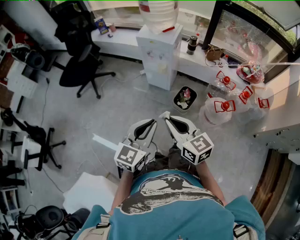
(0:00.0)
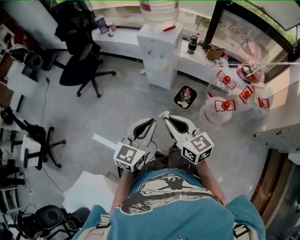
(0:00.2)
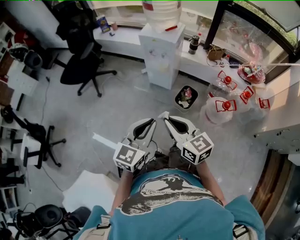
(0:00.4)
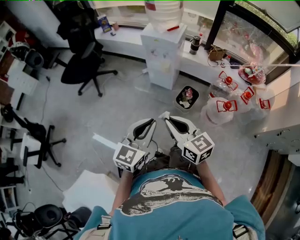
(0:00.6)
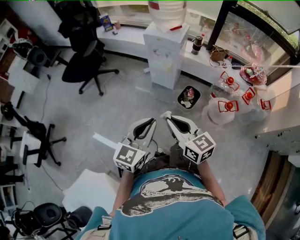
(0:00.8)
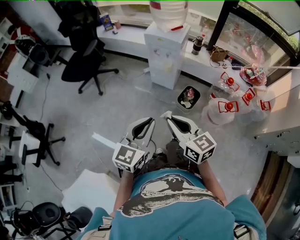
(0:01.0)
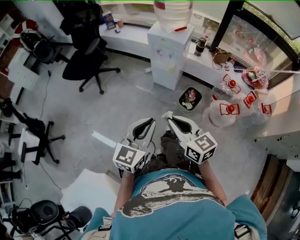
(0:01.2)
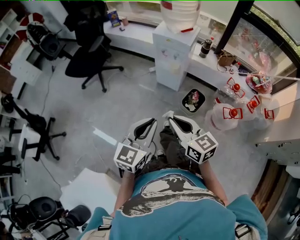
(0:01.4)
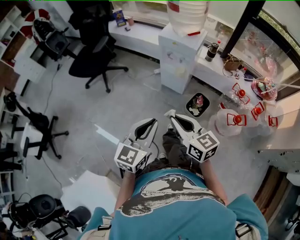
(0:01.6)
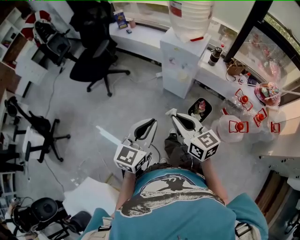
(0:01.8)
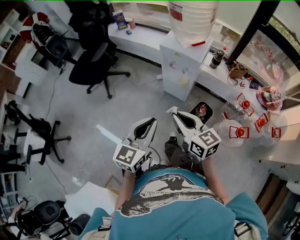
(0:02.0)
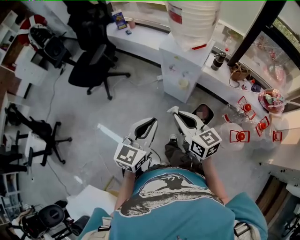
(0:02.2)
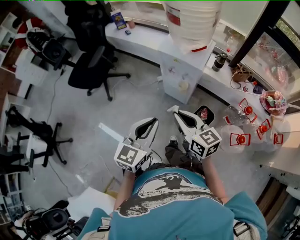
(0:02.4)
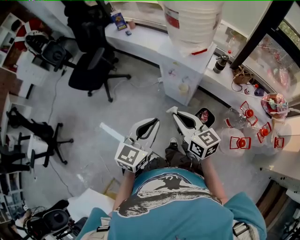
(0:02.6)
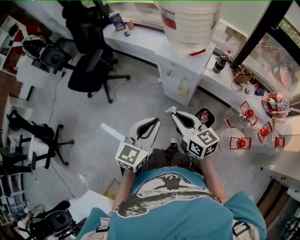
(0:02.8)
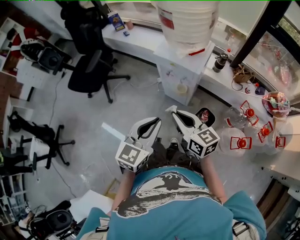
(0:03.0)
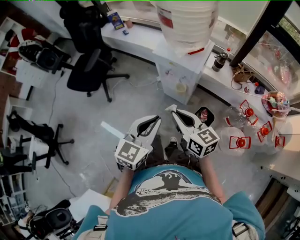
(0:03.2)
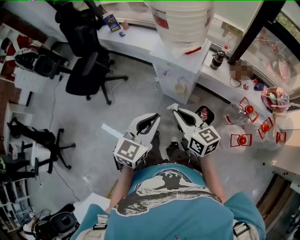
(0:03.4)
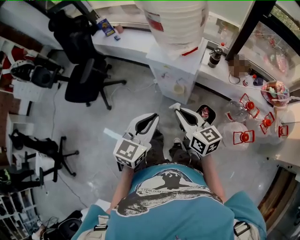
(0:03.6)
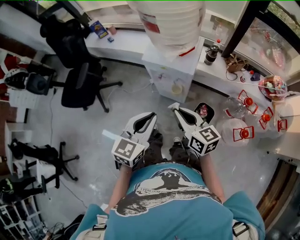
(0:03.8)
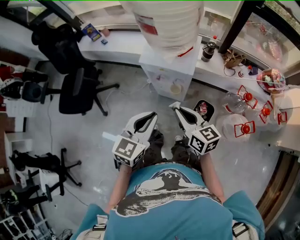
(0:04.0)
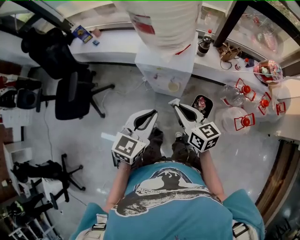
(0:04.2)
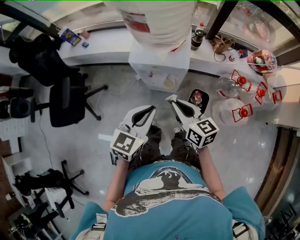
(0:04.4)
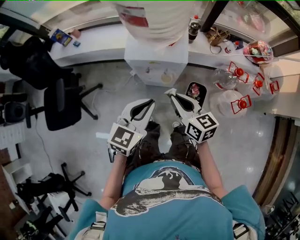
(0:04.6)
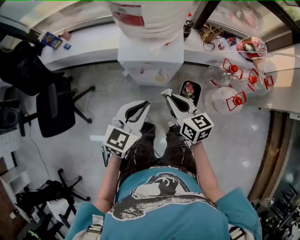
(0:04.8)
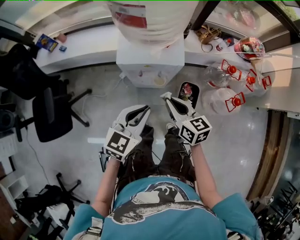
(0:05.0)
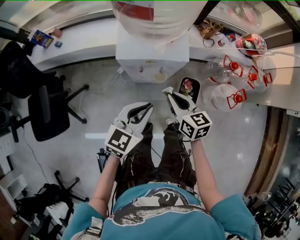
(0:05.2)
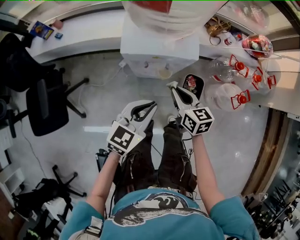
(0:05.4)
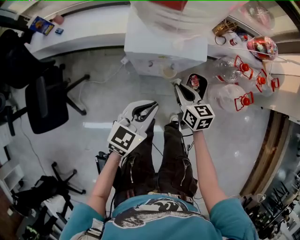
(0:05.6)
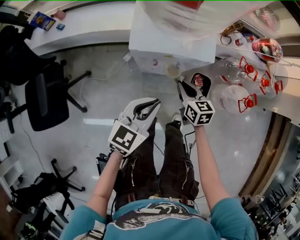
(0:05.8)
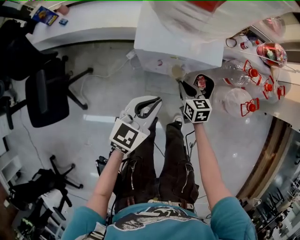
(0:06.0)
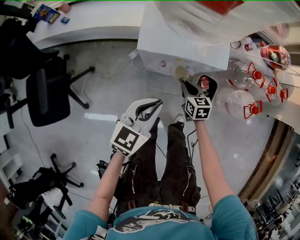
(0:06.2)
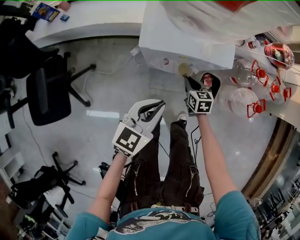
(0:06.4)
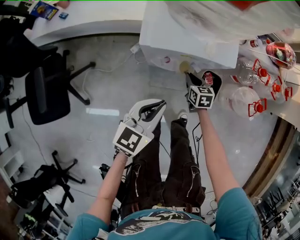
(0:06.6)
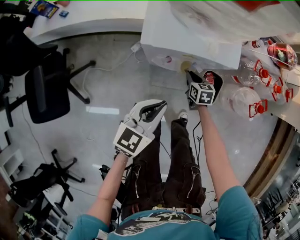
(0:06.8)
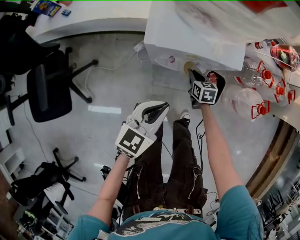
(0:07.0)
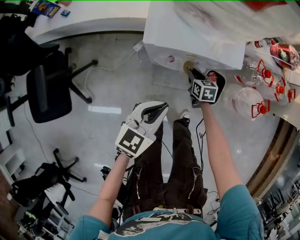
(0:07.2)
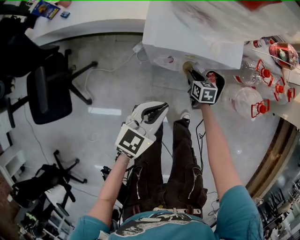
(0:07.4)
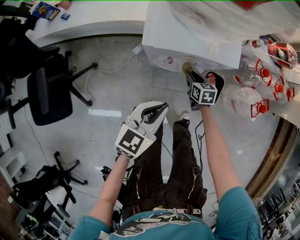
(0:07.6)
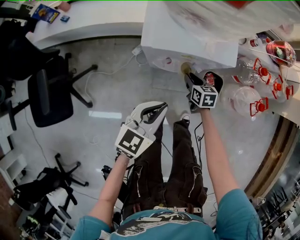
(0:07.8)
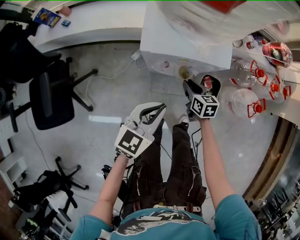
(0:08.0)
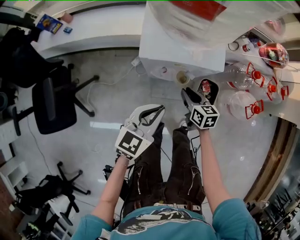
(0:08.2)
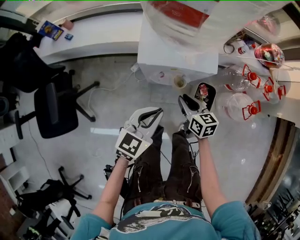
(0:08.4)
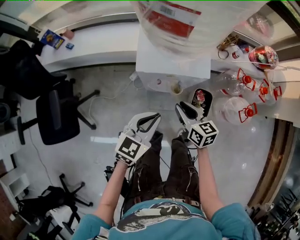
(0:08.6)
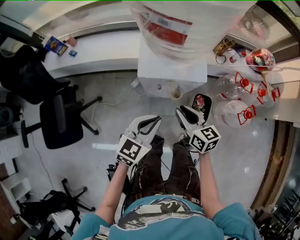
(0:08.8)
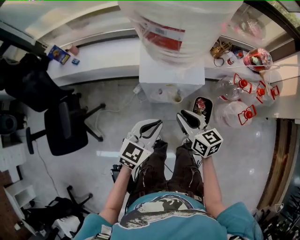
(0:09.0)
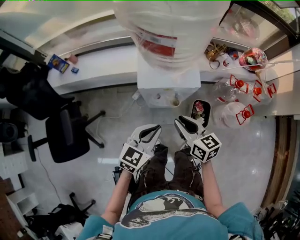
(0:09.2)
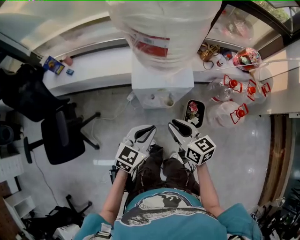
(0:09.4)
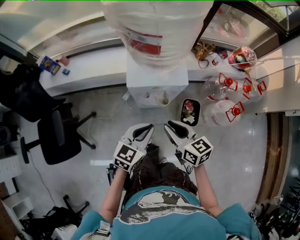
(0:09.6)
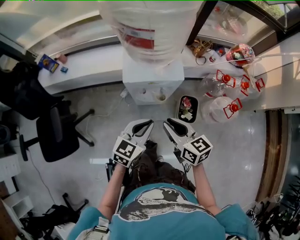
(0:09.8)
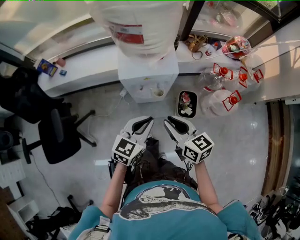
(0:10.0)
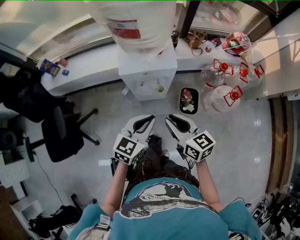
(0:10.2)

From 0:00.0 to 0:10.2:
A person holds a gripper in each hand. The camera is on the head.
From 0:00.0 to 0:01.4: The grippers both shift to the left by some 5 cm.
From 0:01.4 to 0:03.0: Both grippers move forward, some 25 cm.
From 0:03.0 to 0:04.4: The grippers both shift forward by about 10 cm. The right gripper rotates some 30 degrees, while the left gripper swivels about 20 degrees.
From 0:04.4 to 0:05.8: The left gripper travels downward by approximately 15 cm; the right gripper moves downward and forward, some 25 cm, and swivels about 20 degrees.
From 0:05.8 to 0:07.2: The right gripper moves downward and forward, some 15 cm; the left gripper is displaced downward by about 5 cm.
From 0:07.2 to 0:08.8: The right gripper heads upward, covering about 25 cm, and swivels some 30 degrees; the left gripper goes approximately 10 cm upward.
From 0:08.8 to 0:10.2: The right gripper shifts roughly 15 cm backward and upward. Meanwhile the left gripper goes about 10 cm backward and upward.

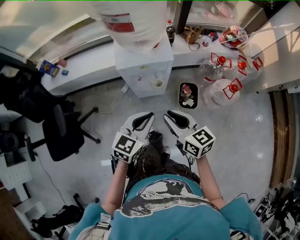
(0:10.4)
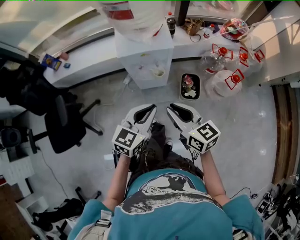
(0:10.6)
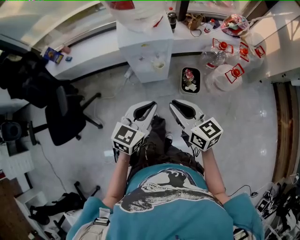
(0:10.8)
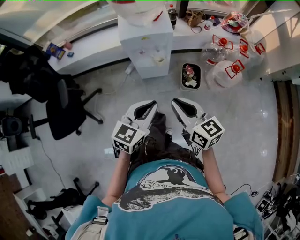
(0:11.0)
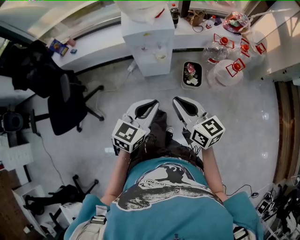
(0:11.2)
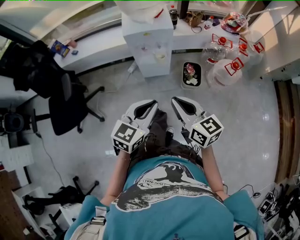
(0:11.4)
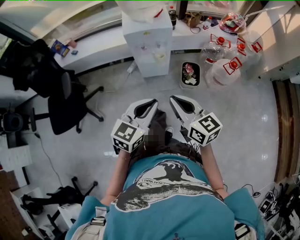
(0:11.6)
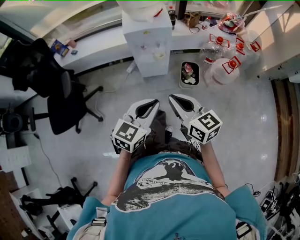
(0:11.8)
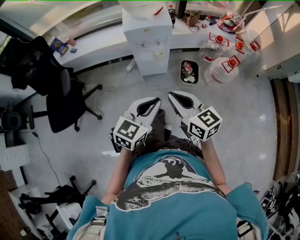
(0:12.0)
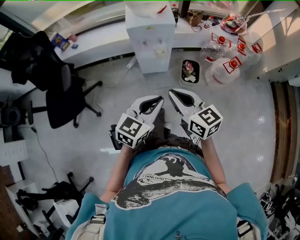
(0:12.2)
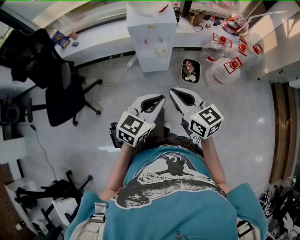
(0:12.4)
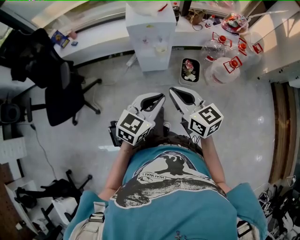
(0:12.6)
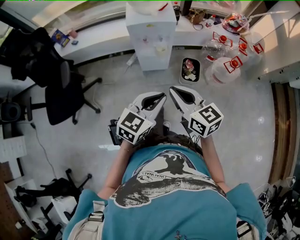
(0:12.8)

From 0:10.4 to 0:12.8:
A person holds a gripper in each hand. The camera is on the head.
From 0:10.4 to 0:11.6: Both grippers move backward, roughly 20 cm.
From 0:11.6 to 0:12.8: The grippers make only small movements.

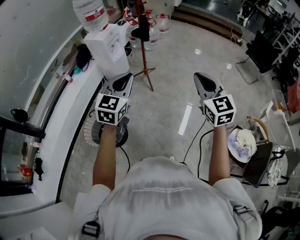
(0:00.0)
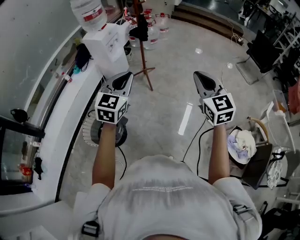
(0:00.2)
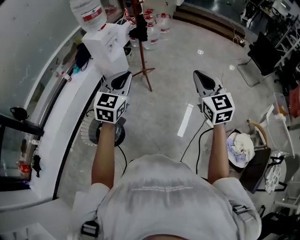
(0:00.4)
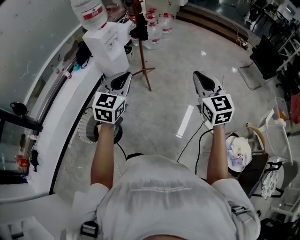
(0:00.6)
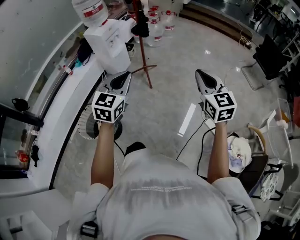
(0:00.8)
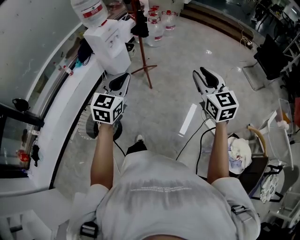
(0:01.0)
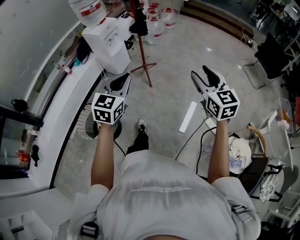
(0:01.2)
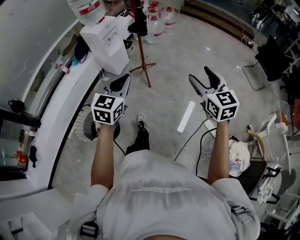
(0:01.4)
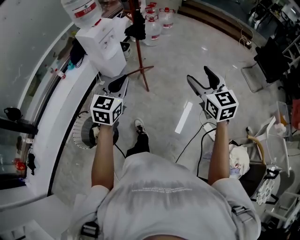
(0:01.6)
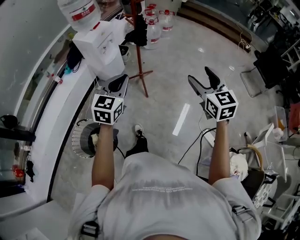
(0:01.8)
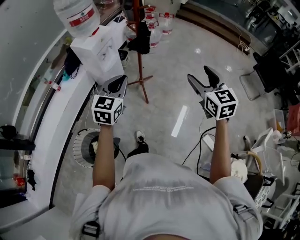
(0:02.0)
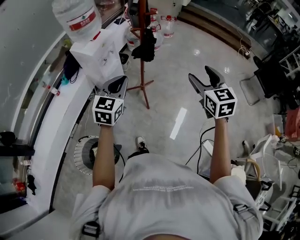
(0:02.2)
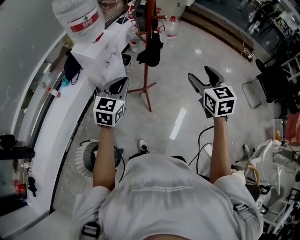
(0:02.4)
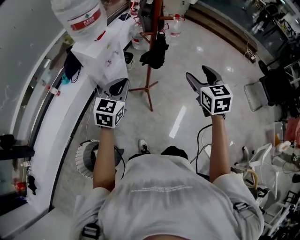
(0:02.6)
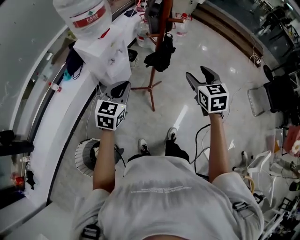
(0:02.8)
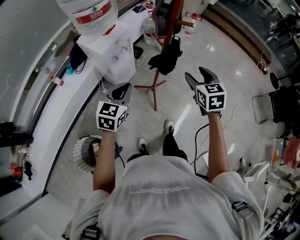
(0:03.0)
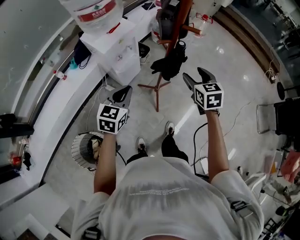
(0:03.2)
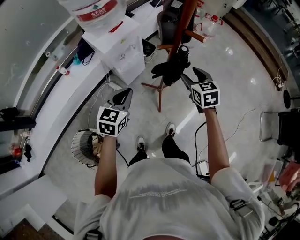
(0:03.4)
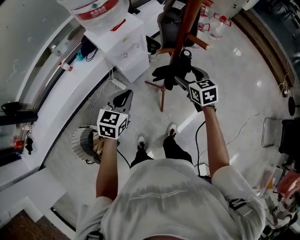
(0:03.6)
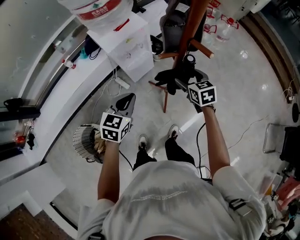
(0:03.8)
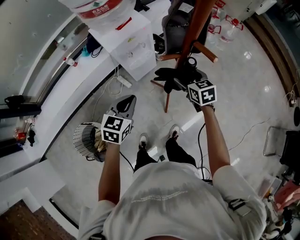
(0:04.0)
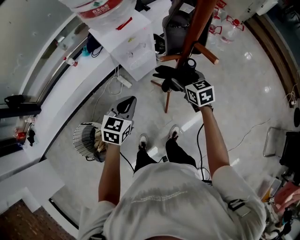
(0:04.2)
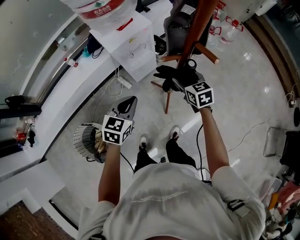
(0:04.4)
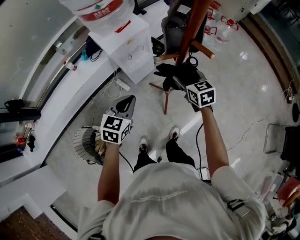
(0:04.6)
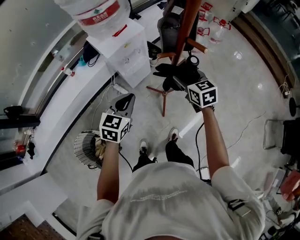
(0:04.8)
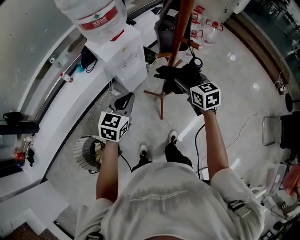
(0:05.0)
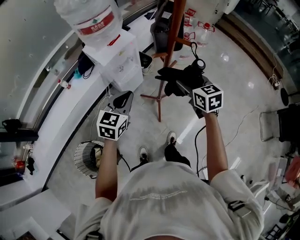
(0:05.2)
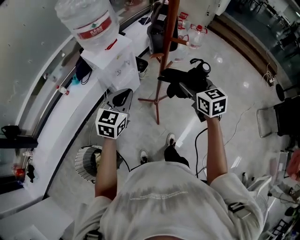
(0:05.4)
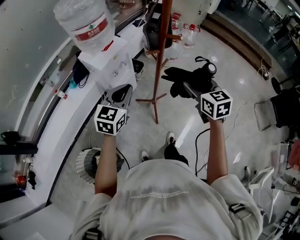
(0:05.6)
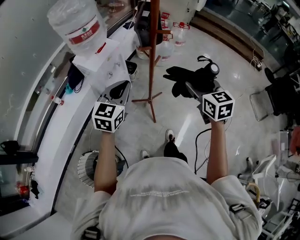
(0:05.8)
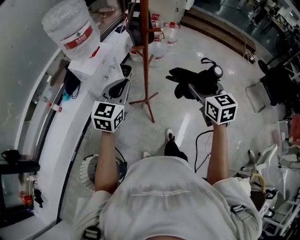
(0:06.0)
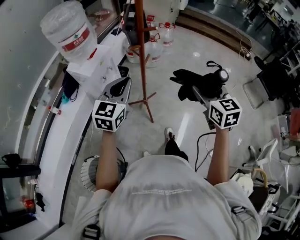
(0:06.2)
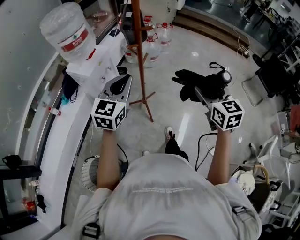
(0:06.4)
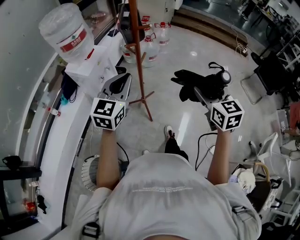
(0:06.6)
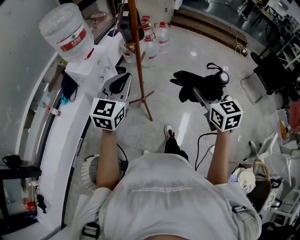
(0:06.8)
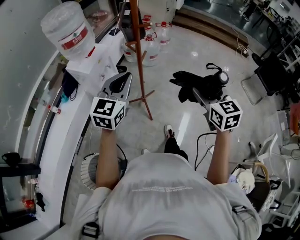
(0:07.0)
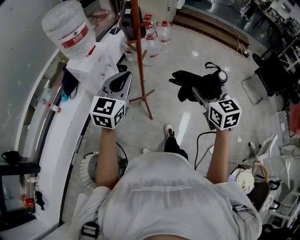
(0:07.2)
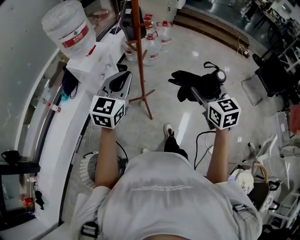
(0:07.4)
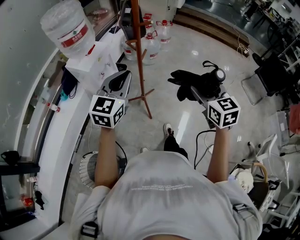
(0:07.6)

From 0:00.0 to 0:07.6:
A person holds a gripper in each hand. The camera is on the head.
From 0:00.0 to 0:01.6: The left gripper goes about 15 cm forward, downward and to the right. The right gripper shifts roughly 20 cm forward and to the right, and opens up.
From 0:01.6 to 0:03.0: Both grippers move forward and to the left, about 40 cm.
From 0:03.0 to 0:04.6: The right gripper ends up about 20 cm from where it was, and changes its angle by about 30 degrees. Meanwhile the left gripper is displaced downward by about 5 cm.
From 0:04.6 to 0:06.0: The left gripper goes some 15 cm upward, and rotates roughly 30 degrees. The right gripper moves about 35 cm, and changes its angle by some 30 degrees.
From 0:06.0 to 0:07.6: The right gripper travels backward by roughly 10 cm. Meanwhile the left gripper shifts by approximately 5 cm.

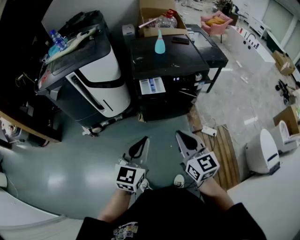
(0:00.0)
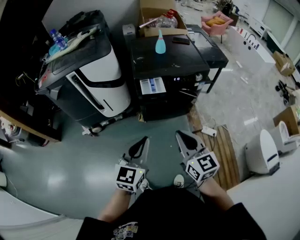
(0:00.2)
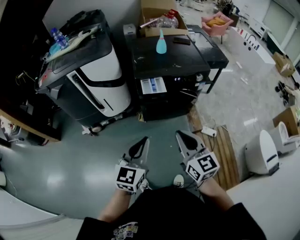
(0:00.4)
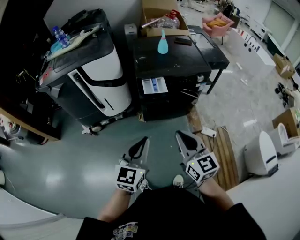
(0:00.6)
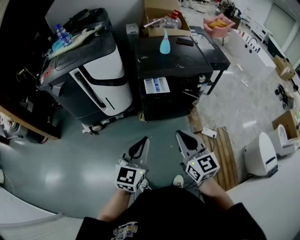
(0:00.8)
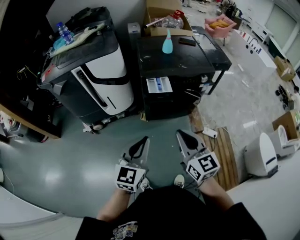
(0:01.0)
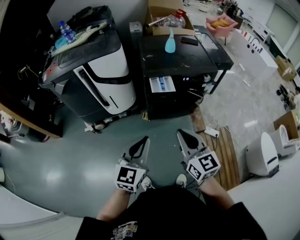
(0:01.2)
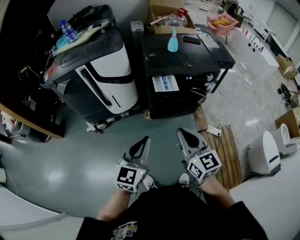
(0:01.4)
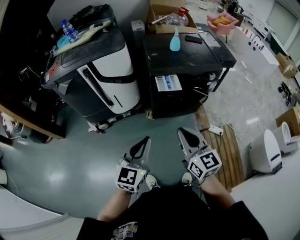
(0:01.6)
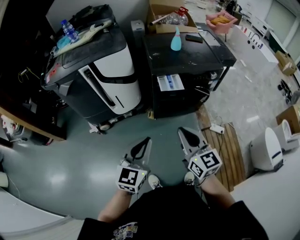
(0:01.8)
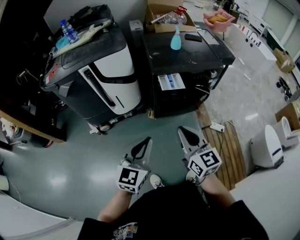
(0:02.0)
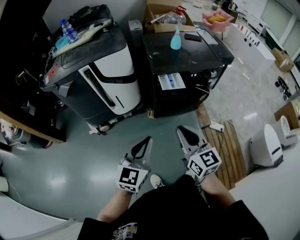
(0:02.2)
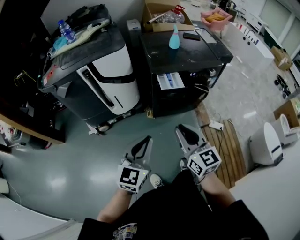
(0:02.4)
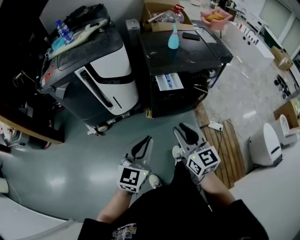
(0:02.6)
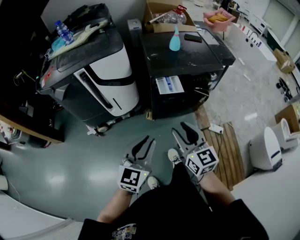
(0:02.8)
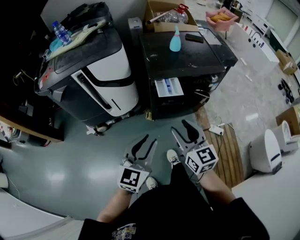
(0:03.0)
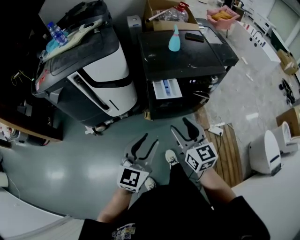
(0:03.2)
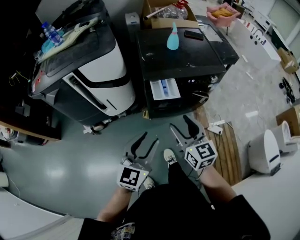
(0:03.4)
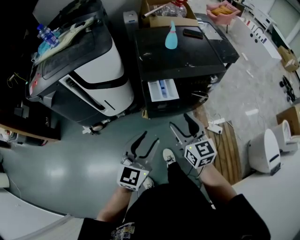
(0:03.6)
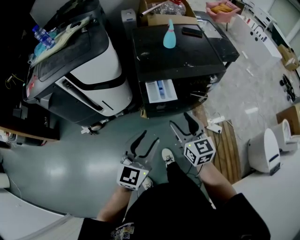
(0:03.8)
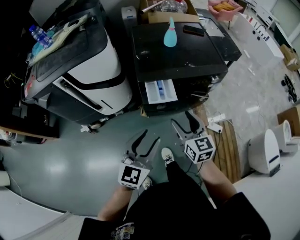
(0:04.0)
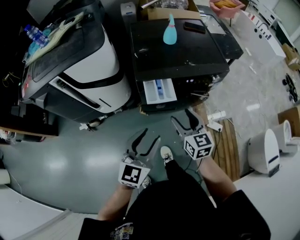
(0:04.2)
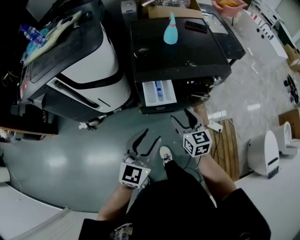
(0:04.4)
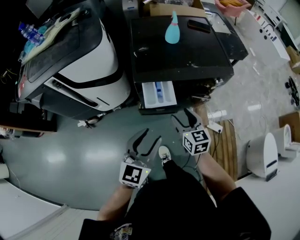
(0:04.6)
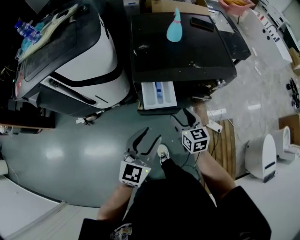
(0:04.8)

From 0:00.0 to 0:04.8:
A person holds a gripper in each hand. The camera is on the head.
From 0:00.0 to 0:01.6: Both grippers move to the left, approximately 10 cm.
From 0:01.6 to 0:03.2: Both grippers move forward, some 10 cm. The right gripper opens its fingers. Meanwhile the left gripper opens.
From 0:03.2 to 0:04.8: The right gripper shifts some 30 cm forward and downward. Meanwhile the left gripper moves forward, downward and to the right, approximately 20 cm.
